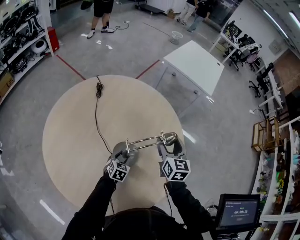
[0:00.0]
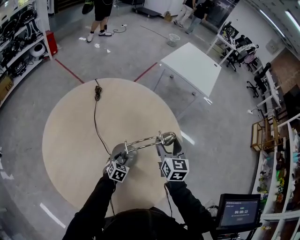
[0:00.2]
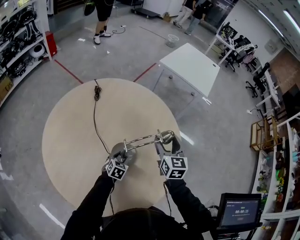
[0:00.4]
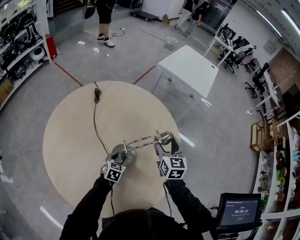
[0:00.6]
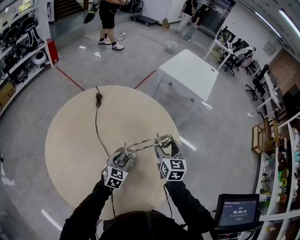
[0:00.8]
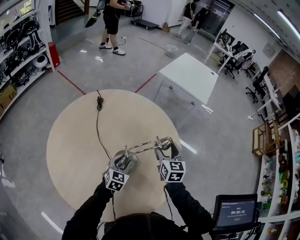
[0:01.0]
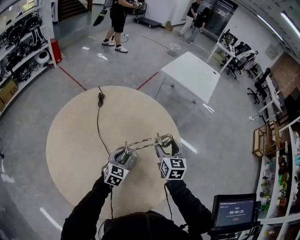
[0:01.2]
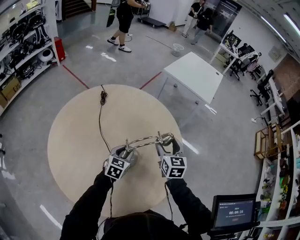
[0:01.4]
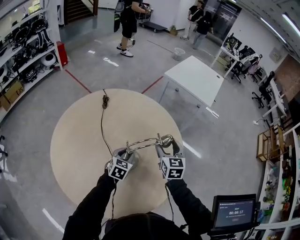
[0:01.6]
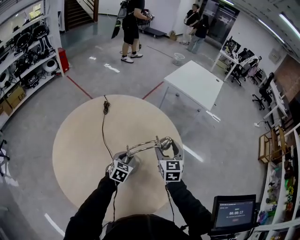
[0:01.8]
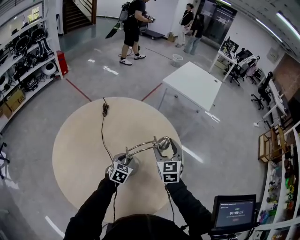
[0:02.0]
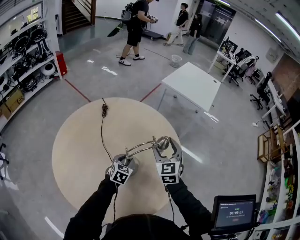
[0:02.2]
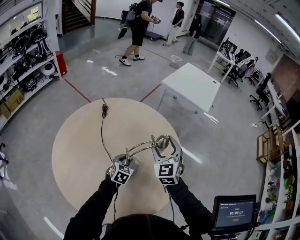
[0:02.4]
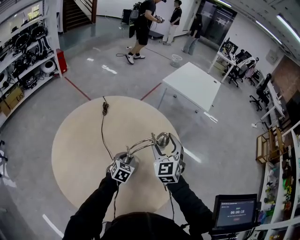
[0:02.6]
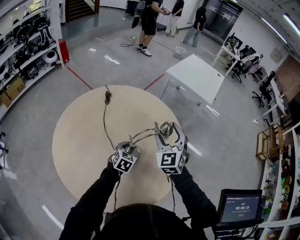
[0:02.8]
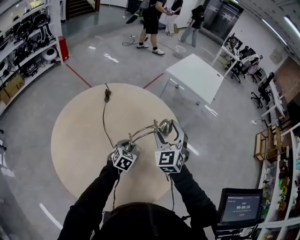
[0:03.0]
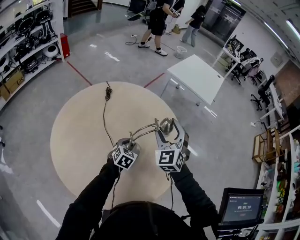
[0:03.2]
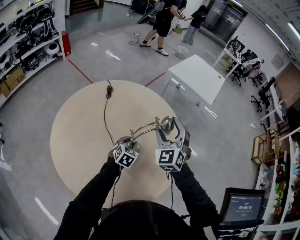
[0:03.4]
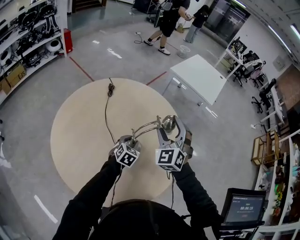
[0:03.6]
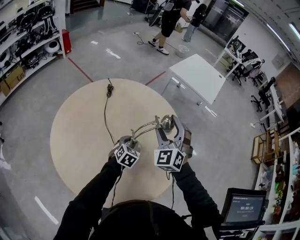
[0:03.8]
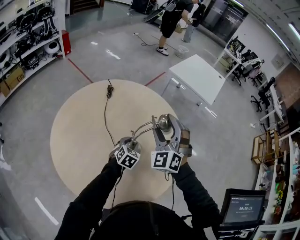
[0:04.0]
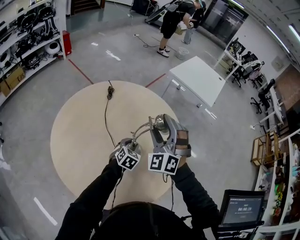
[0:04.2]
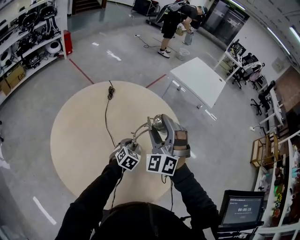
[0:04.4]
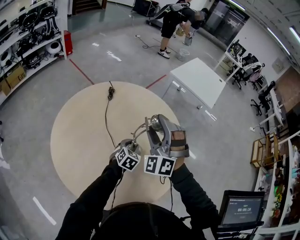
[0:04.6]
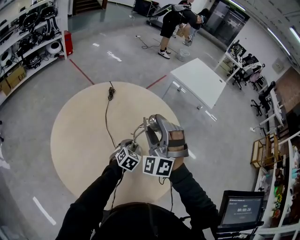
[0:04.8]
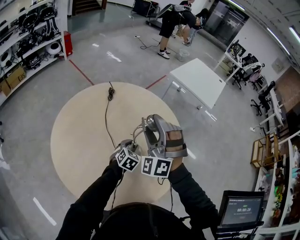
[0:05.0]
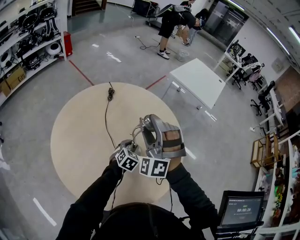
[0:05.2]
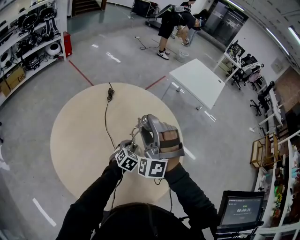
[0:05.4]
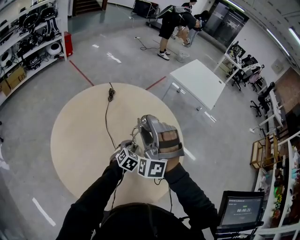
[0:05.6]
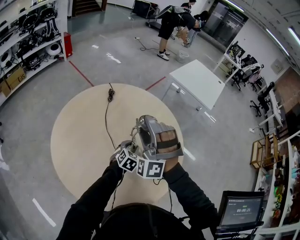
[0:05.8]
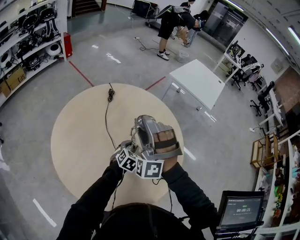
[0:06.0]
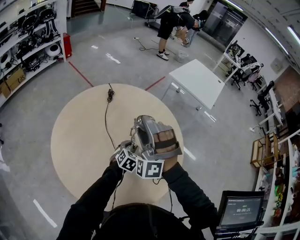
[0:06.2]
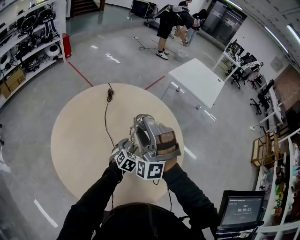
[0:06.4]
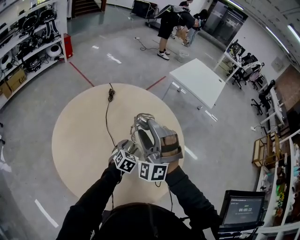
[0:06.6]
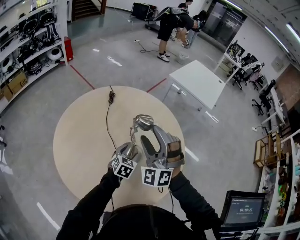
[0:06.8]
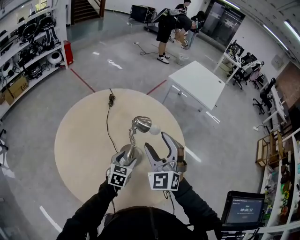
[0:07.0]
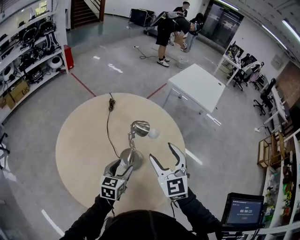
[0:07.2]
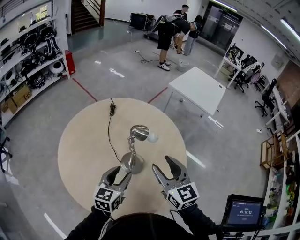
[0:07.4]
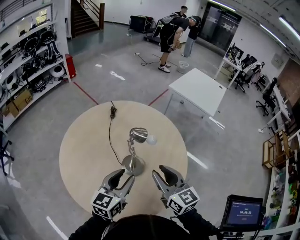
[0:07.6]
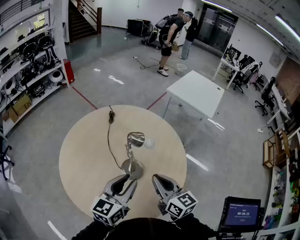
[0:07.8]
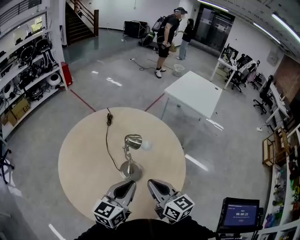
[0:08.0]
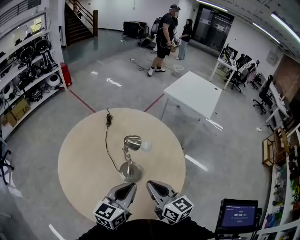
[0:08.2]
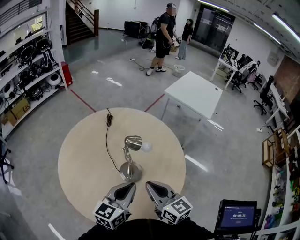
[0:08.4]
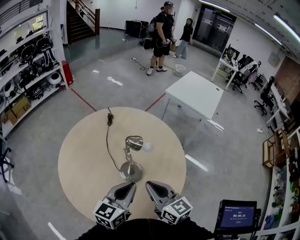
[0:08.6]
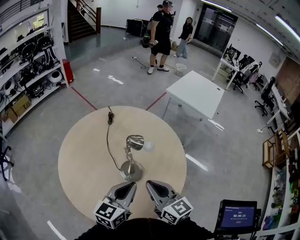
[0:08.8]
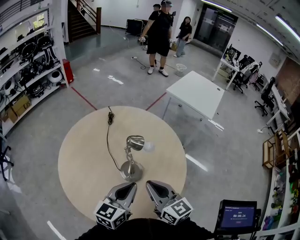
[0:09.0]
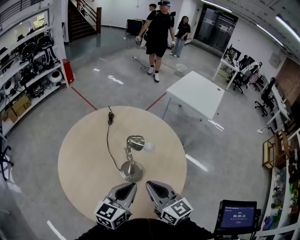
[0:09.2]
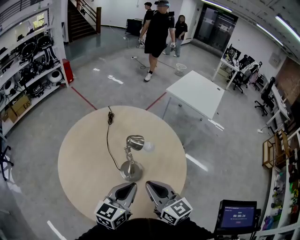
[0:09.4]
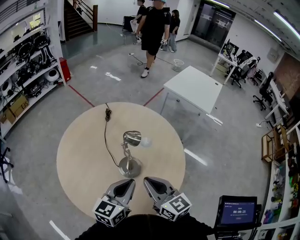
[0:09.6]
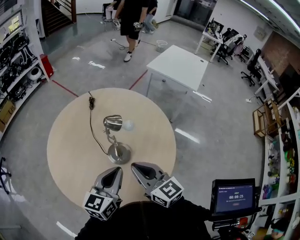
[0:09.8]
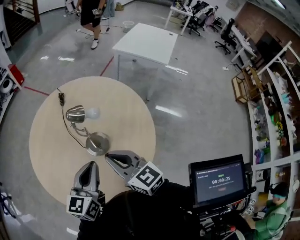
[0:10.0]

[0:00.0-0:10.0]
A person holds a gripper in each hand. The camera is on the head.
0:00.0 to 0:01.4: The left gripper is displaced upward by some 15 cm.
0:01.4 to 0:02.8: The right gripper moves upward and to the left, roughly 10 cm, and swivels approximately 40 degrees.
0:02.8 to 0:04.2: The right gripper travels to the left by approximately 5 cm, and turns by approximately 30 degrees.
0:04.2 to 0:05.8: The right gripper travels to the left by about 5 cm, and swivels roughly 20 degrees.
0:05.8 to 0:07.2: The right gripper is displaced to the right and backward by roughly 10 cm, and rotates around the line of its fingers by about 60 degrees, clockwise from behind. Meanwhile the left gripper travels backward and upward by approximately 15 cm, changes its angle by roughly 30 degrees, and opens.
0:07.2 to 0:08.6: The left gripper heads upward and backward, covering approximately 15 cm, and closes; the right gripper is displaced backward by approximately 10 cm, rotates approximately 40 degrees, and closes up.
0:08.6 to 0:10.0: There are only small adjustments of the grippers.

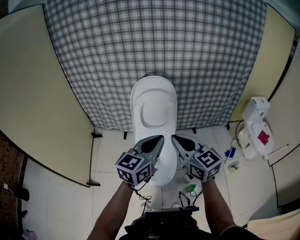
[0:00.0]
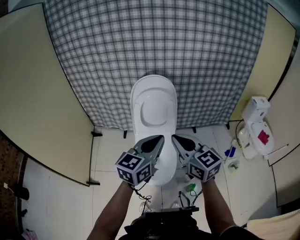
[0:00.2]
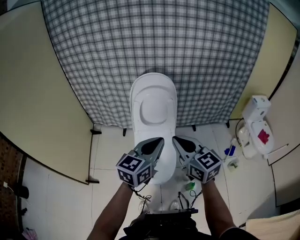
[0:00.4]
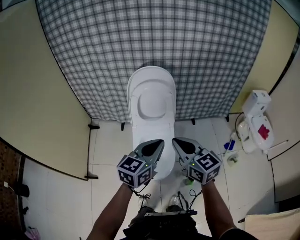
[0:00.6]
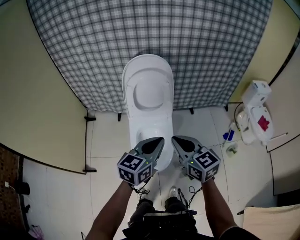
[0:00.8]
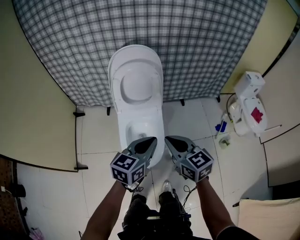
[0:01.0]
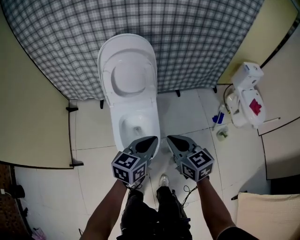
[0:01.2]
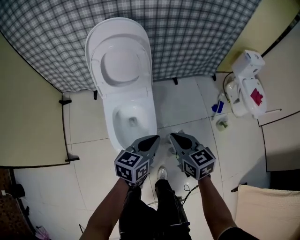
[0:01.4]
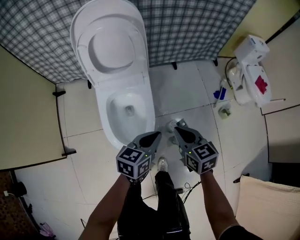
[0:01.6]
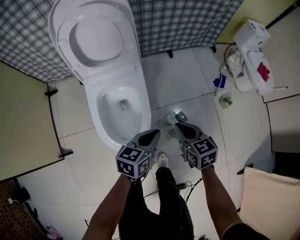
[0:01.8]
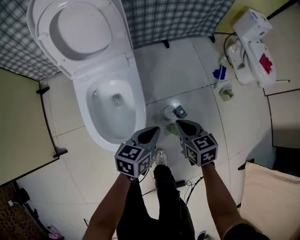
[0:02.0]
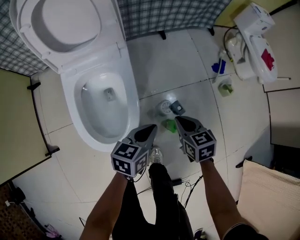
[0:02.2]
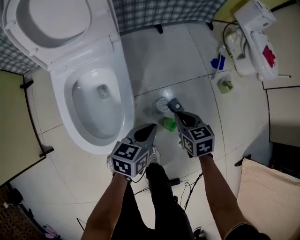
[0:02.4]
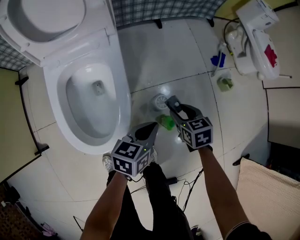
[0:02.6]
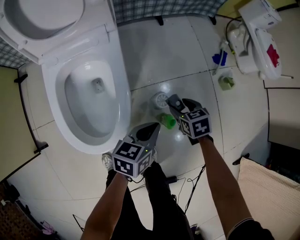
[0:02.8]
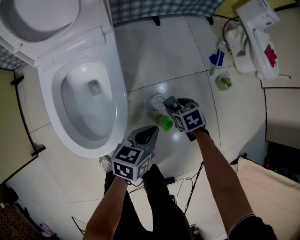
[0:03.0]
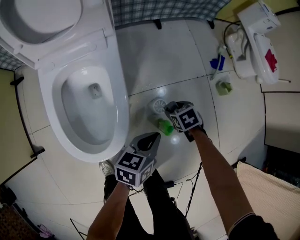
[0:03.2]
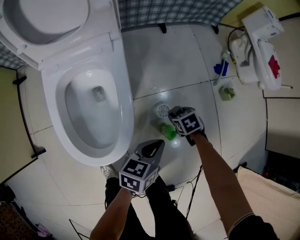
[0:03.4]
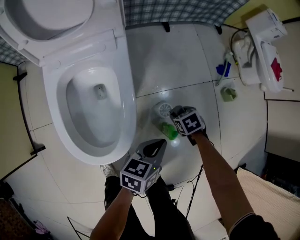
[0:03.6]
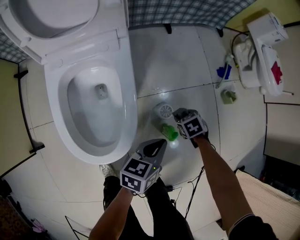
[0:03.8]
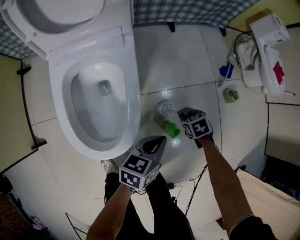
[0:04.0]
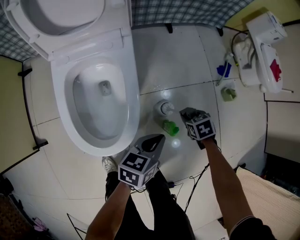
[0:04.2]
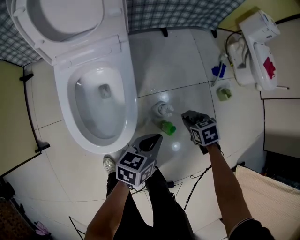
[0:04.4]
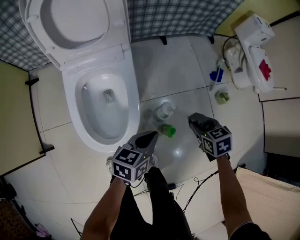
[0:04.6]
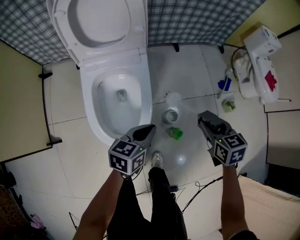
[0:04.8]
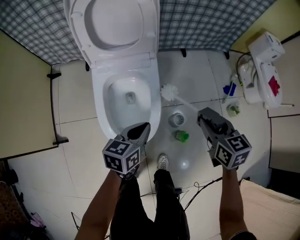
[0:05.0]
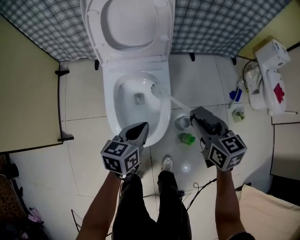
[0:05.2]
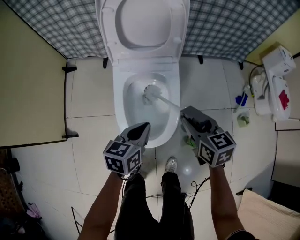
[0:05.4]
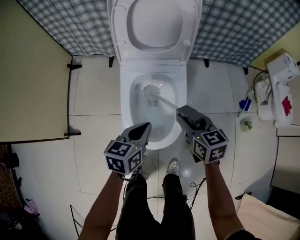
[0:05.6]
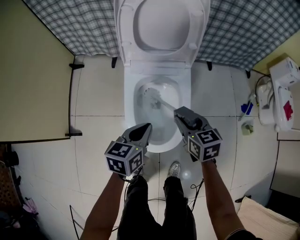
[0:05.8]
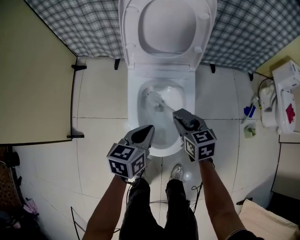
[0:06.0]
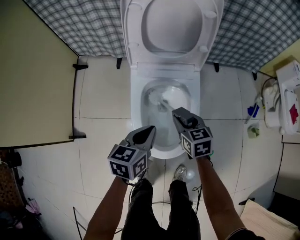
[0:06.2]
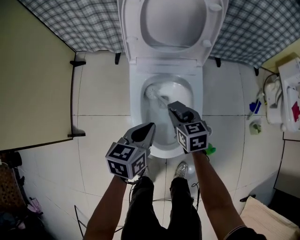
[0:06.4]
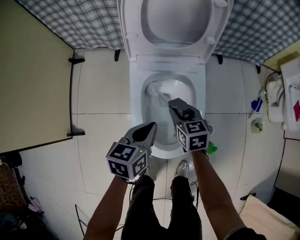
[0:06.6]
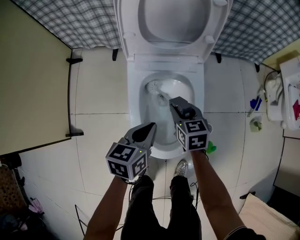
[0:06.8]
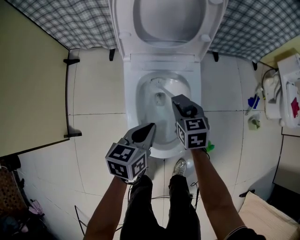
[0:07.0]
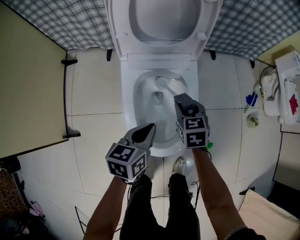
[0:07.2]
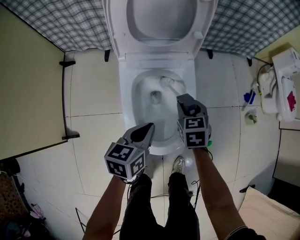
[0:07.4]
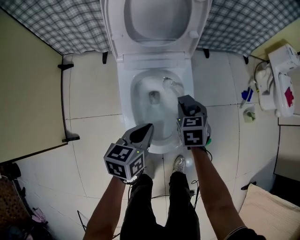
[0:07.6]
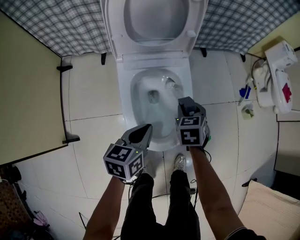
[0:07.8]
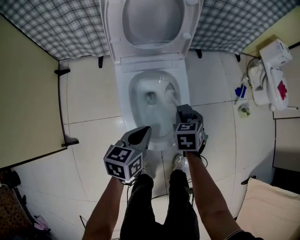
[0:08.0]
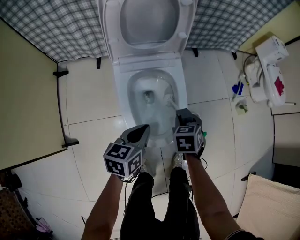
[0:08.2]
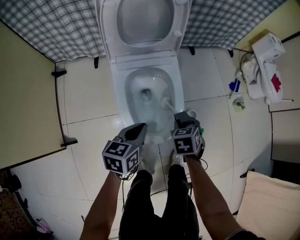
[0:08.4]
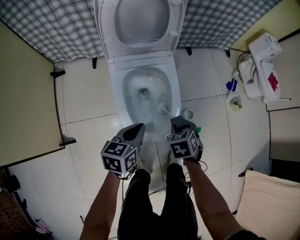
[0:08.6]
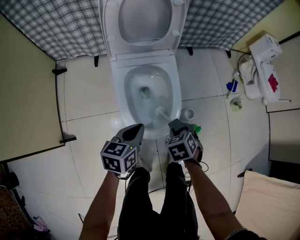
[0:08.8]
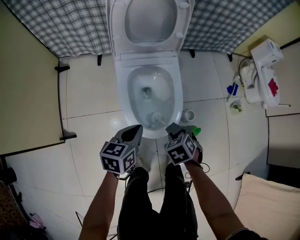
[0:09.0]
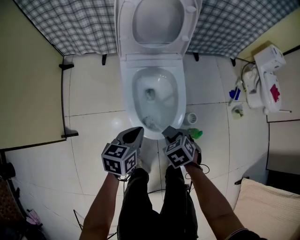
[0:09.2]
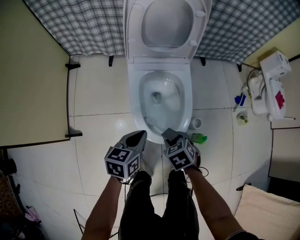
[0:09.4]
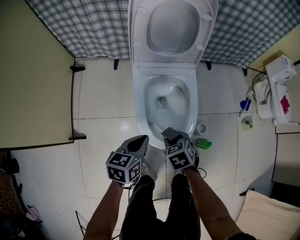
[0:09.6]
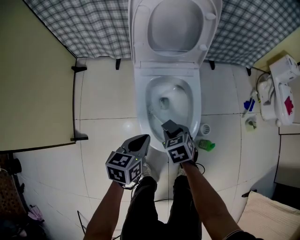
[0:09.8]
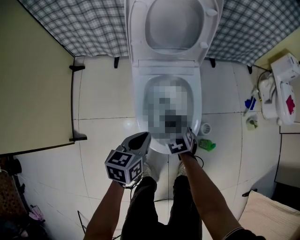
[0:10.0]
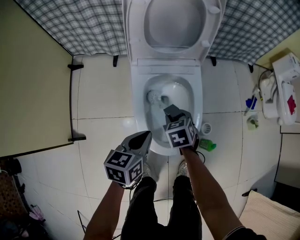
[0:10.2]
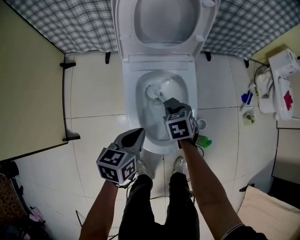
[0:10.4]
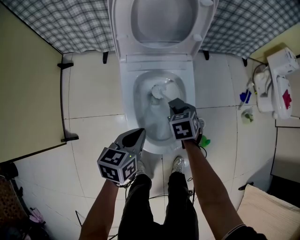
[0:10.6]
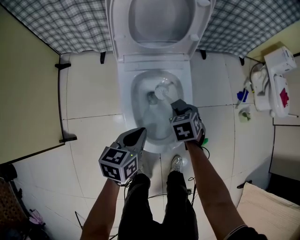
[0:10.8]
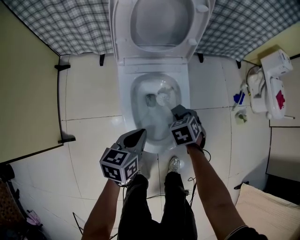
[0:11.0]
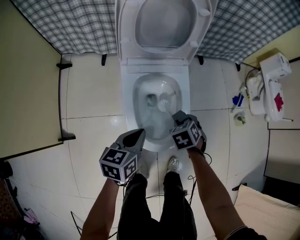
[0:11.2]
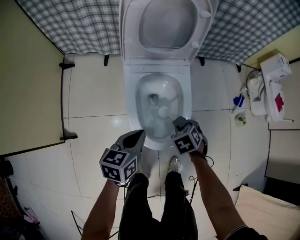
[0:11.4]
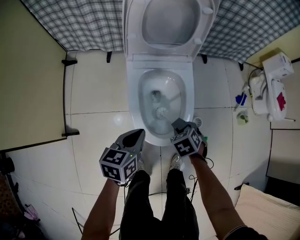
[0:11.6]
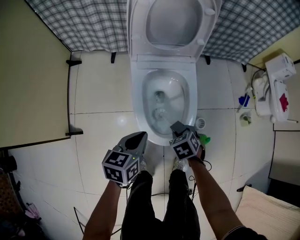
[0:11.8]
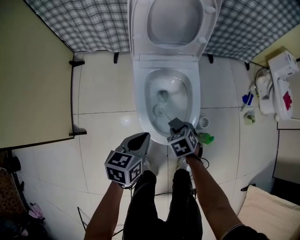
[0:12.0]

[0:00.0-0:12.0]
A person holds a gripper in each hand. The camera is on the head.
0:00.0 to 0:01.6: The left gripper travels downward by roughly 35 cm, and changes its angle by roughly 40 degrees. Meanwhile the right gripper travels downward and to the right by roughly 35 cm, and points its fingers some 30 degrees further downward.
0:01.6 to 0:03.0: The left gripper heads downward and to the right, covering roughly 25 cm. Meanwhile the right gripper is displaced downward by about 35 cm, tips its fingers downward by approximately 40 degrees, and opens.
0:03.0 to 0:04.4: The right gripper shifts roughly 5 cm upward, and closes.
0:04.4 to 0:06.0: The left gripper is displaced to the left by approximately 25 cm, and turns by roughly 30 degrees. The right gripper heads to the left and upward, covering roughly 35 cm, and angles its fingers upward, by approximately 30 degrees.
0:06.0 to 0:07.6: The right gripper changes its angle by roughly 20 degrees.
0:07.6 to 0:09.0: The left gripper moves backward, about 10 cm; the right gripper moves backward, some 20 cm, and swivels approximately 30 degrees.
0:09.0 to 0:10.4: The left gripper moves about 5 cm; the right gripper shifts about 20 cm forward and to the left.
0:10.4 to 0:12.0: The left gripper goes some 5 cm backward, while the right gripper moves backward, about 10 cm.

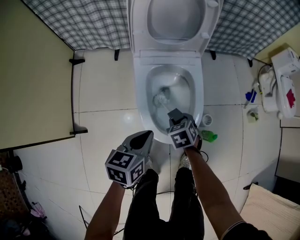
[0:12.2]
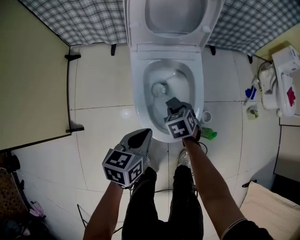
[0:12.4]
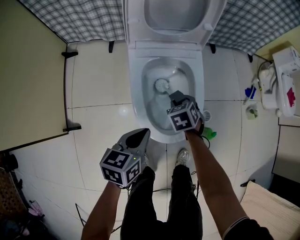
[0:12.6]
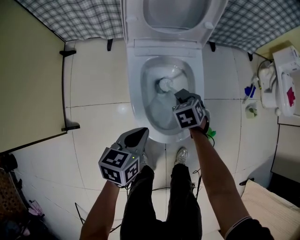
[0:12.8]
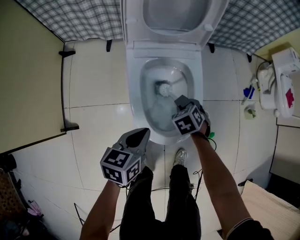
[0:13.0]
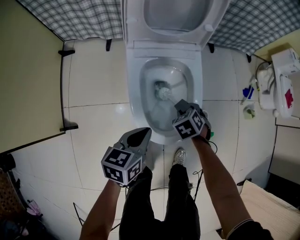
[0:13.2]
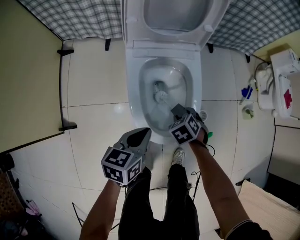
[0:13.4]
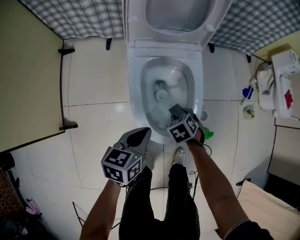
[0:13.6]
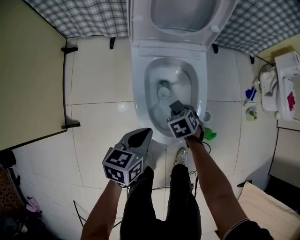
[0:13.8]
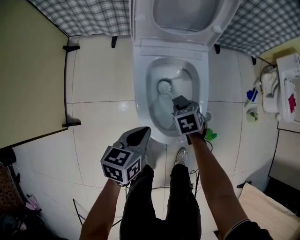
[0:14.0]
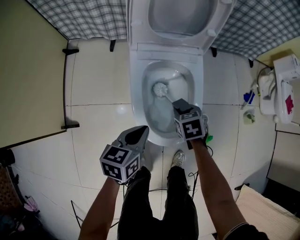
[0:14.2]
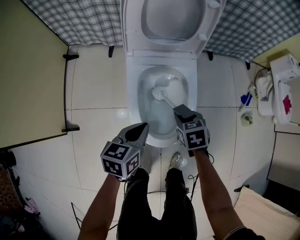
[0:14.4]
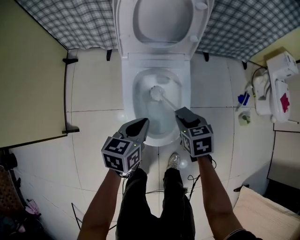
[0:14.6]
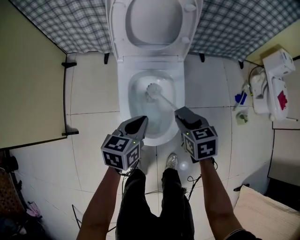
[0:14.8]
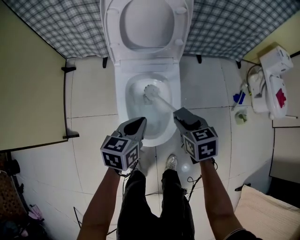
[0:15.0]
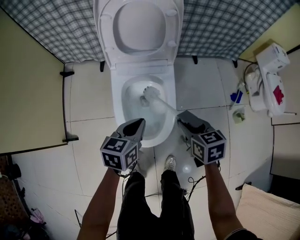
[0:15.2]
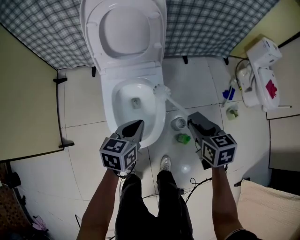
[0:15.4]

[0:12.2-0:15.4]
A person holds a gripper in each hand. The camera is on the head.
0:13.8 to 0:15.4: The left gripper travels to the right, upward and forward by roughly 15 cm. The right gripper shifts roughly 30 cm upward and to the right, and changes its angle by roughly 40 degrees.
